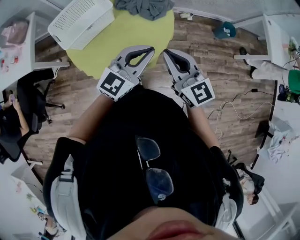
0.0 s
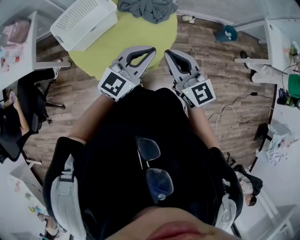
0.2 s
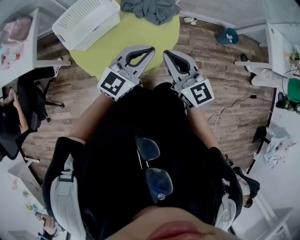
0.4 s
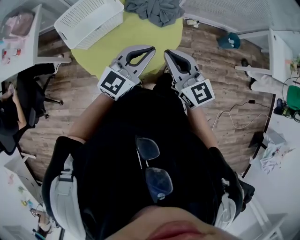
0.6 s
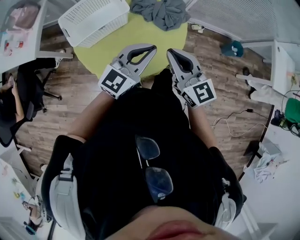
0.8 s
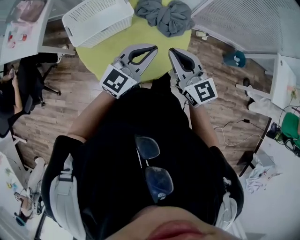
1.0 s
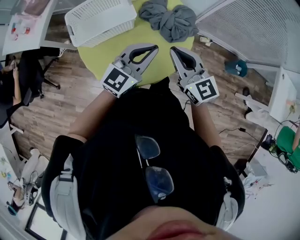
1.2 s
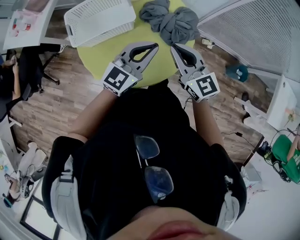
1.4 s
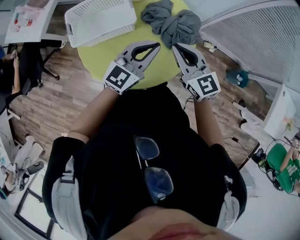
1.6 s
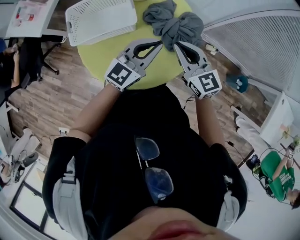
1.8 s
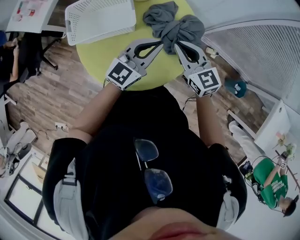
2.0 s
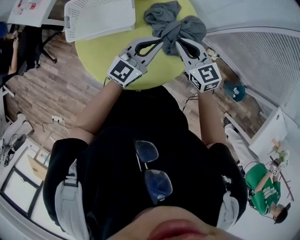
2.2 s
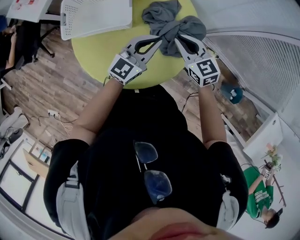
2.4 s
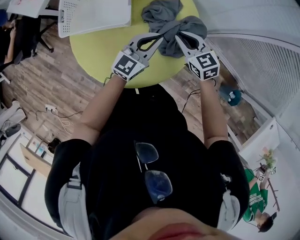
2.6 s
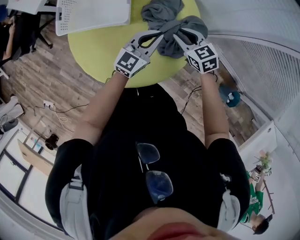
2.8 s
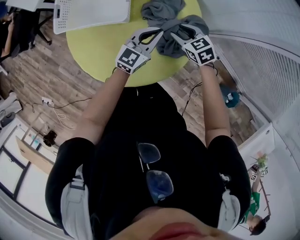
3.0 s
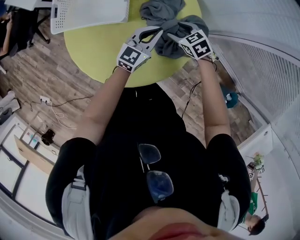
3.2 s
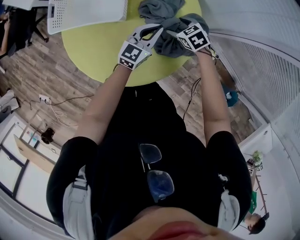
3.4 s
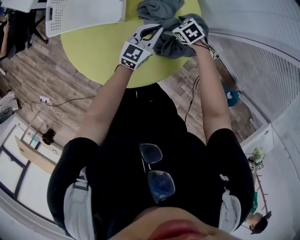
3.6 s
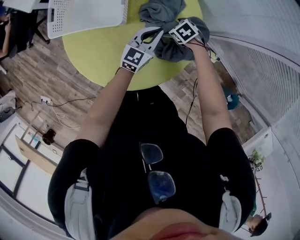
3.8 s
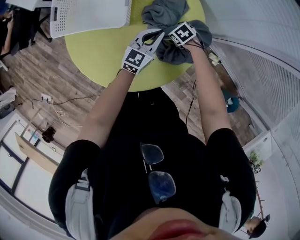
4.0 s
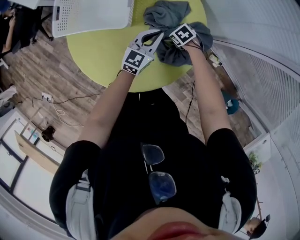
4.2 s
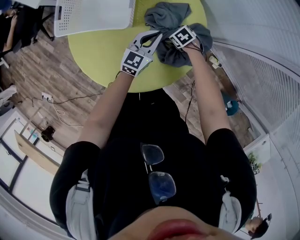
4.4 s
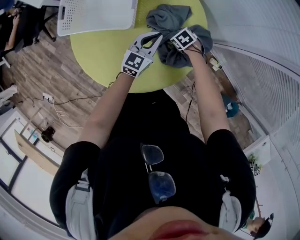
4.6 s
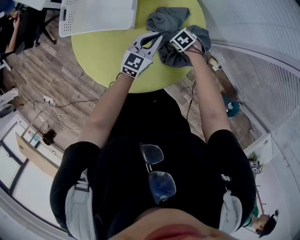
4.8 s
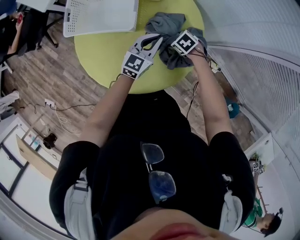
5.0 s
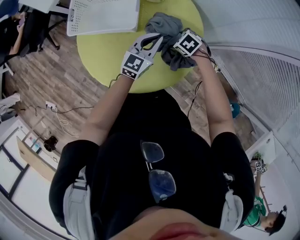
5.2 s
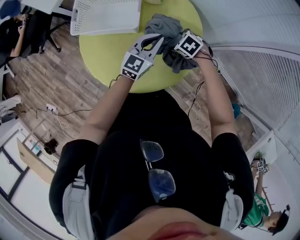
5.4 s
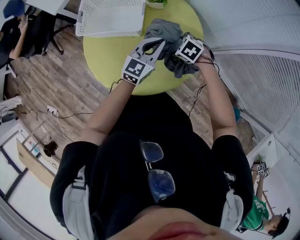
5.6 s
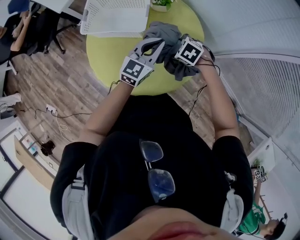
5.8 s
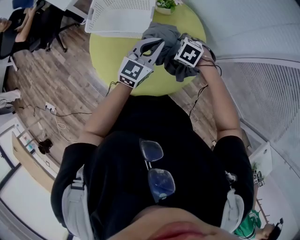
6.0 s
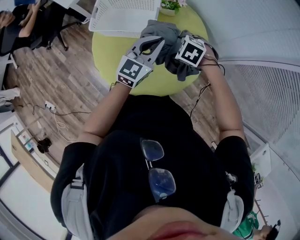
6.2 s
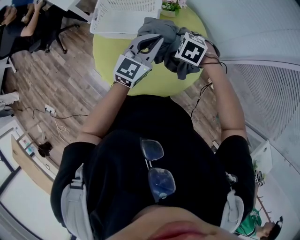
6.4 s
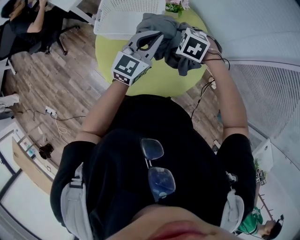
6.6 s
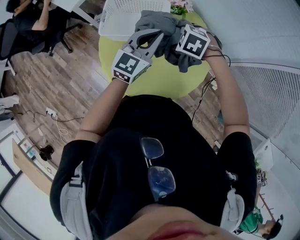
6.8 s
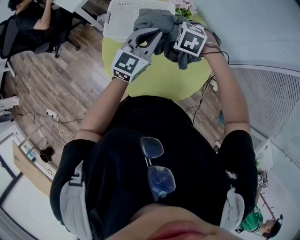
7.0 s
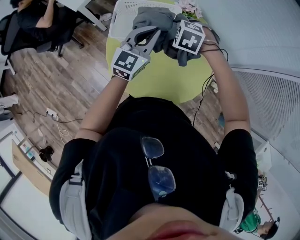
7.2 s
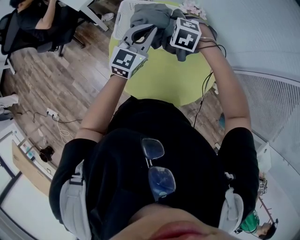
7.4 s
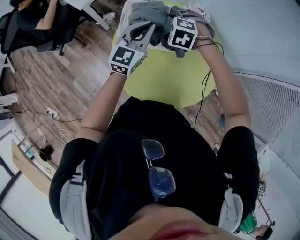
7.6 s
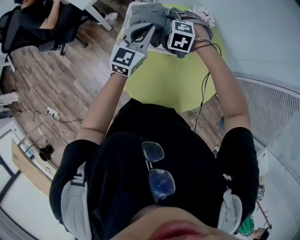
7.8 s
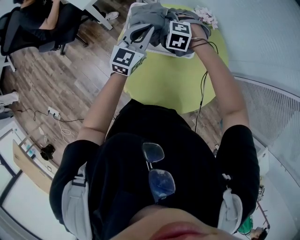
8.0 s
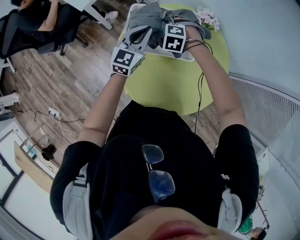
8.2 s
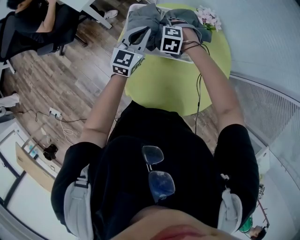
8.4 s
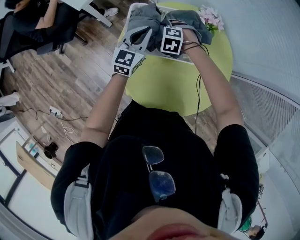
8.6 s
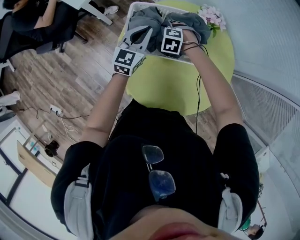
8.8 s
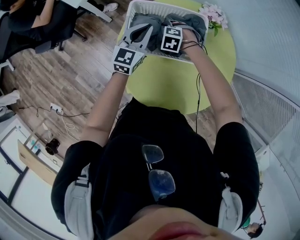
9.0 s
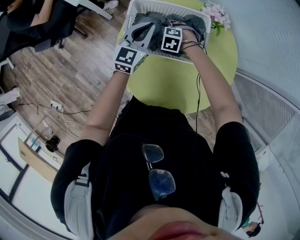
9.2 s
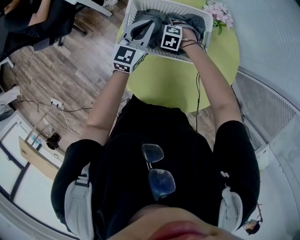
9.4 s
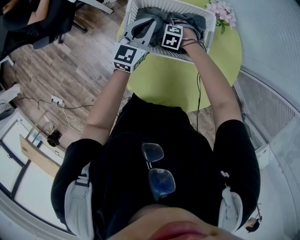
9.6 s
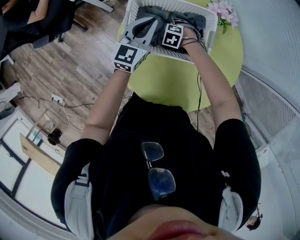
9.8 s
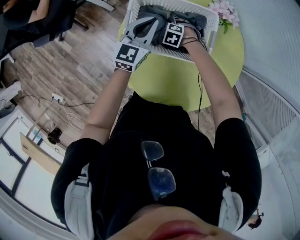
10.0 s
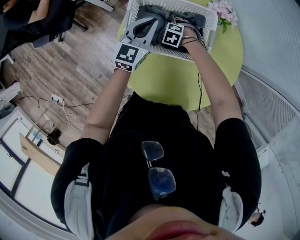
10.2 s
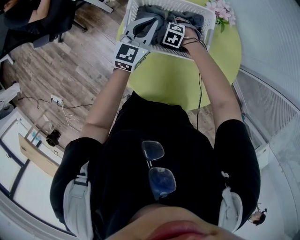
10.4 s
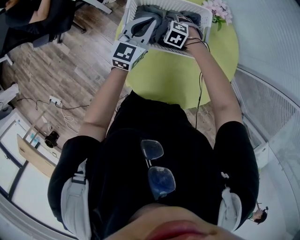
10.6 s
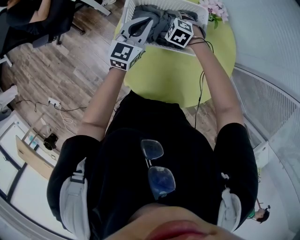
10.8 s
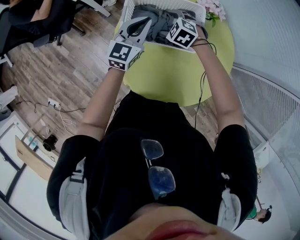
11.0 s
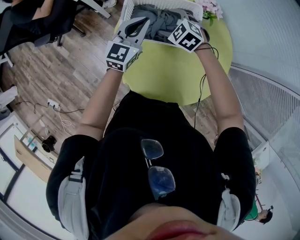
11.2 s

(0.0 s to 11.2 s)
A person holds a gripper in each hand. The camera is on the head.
0.0 s - 1.6 s: The two grippers go some 20 cm forward. The left gripper turns by roughly 20 degrees. The right gripper turns by about 20 degrees.
1.6 s - 3.2 s: Both grippers travel together downward, approximately 20 cm. The left gripper rotates roughly 20 degrees. Meanwhile the right gripper tilts its fingers some 40 degrees downward, and opens up.
3.2 s - 4.8 s: The right gripper moves downward, some 10 cm, and changes its angle by about 20 degrees.
4.8 s - 6.4 s: The two grippers go roughly 25 cm upward and to the left. The right gripper turns by approximately 30 degrees.
6.4 s - 8.0 s: The grippers both shift to the left and forward by about 25 cm. The right gripper rotates some 20 degrees.
8.0 s - 9.6 s: The right gripper moves downward, roughly 20 cm; the left gripper heads downward, covering approximately 10 cm.
9.6 s - 11.2 s: The left gripper changes place by about 10 cm, while the right gripper is displaced upward by approximately 20 cm, and rotates some 30 degrees.

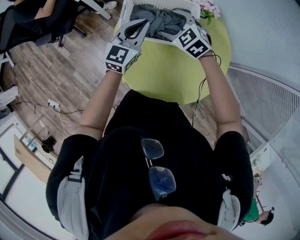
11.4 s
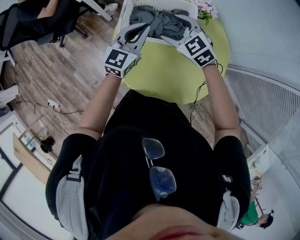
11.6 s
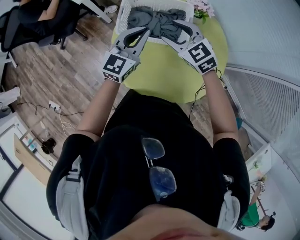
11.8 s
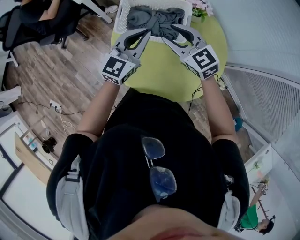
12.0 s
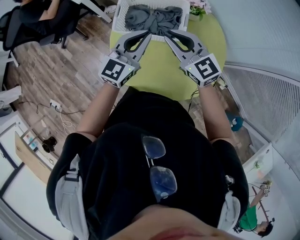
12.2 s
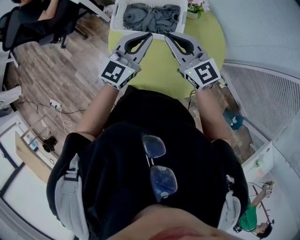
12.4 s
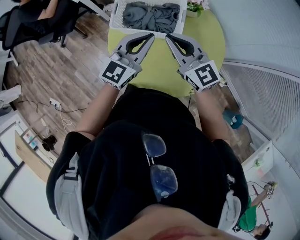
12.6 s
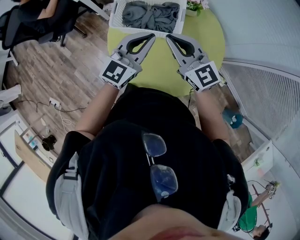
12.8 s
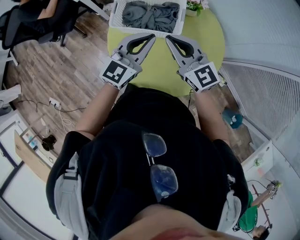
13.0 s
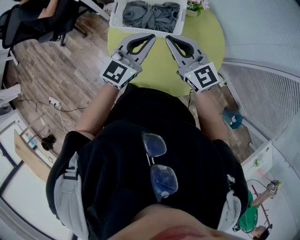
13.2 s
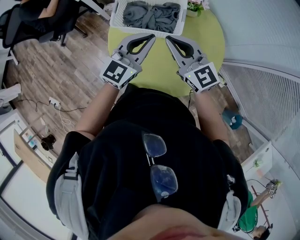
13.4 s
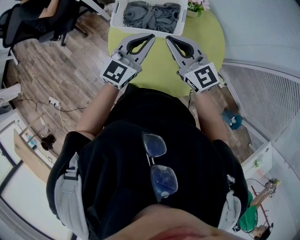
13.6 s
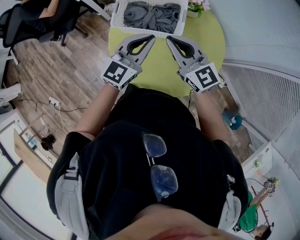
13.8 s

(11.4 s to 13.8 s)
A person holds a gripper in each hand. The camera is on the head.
11.4 s - 12.6 s: The right gripper heads backward, upward and to the right, covering roughly 20 cm, angles its fingers upward, by about 40 degrees, and closes. Meanwhile the left gripper goes some 15 cm backward, to the right and upward.
12.6 s - 13.8 s: The two grippers keep their place.

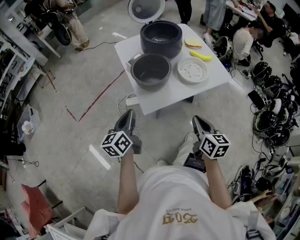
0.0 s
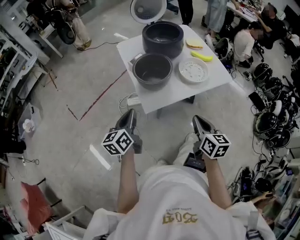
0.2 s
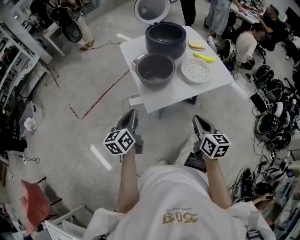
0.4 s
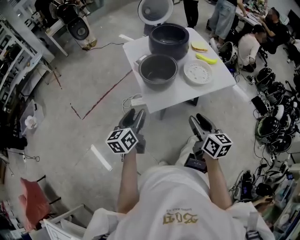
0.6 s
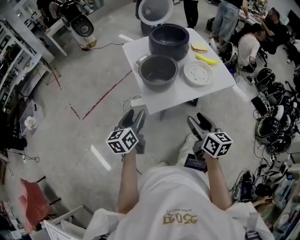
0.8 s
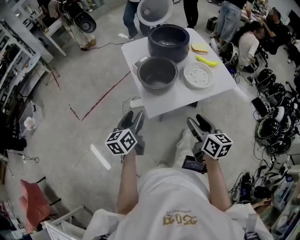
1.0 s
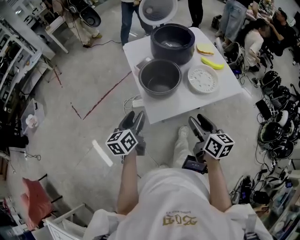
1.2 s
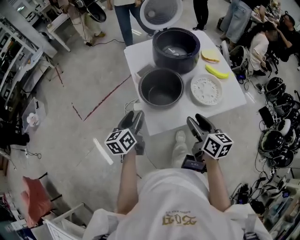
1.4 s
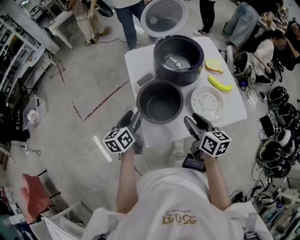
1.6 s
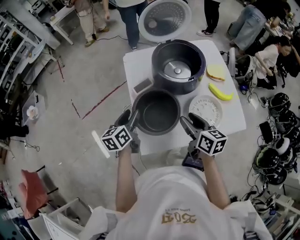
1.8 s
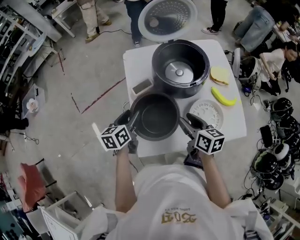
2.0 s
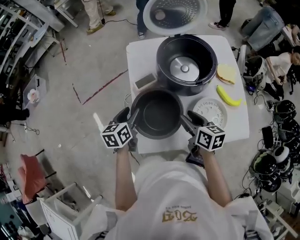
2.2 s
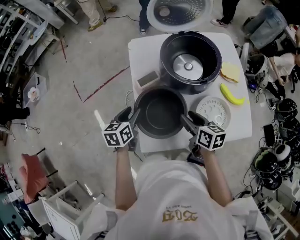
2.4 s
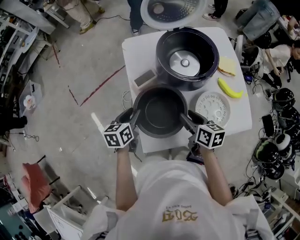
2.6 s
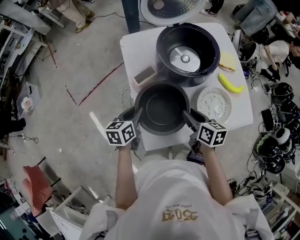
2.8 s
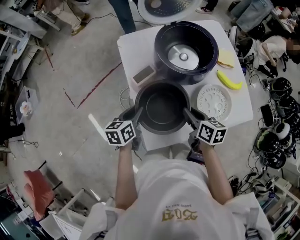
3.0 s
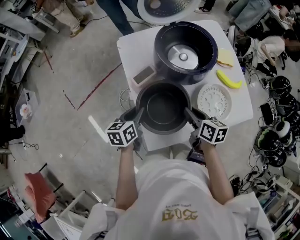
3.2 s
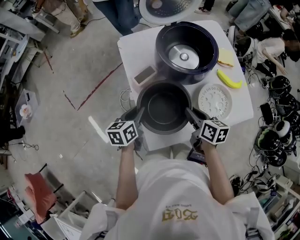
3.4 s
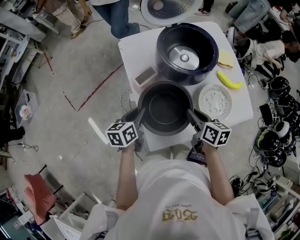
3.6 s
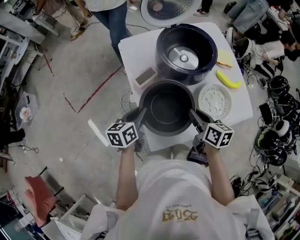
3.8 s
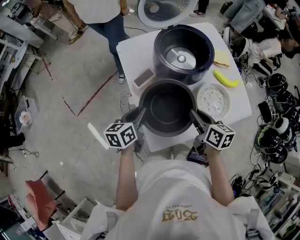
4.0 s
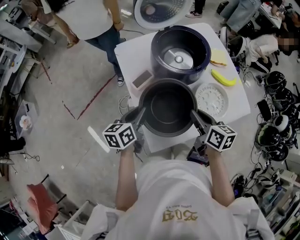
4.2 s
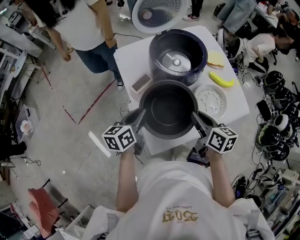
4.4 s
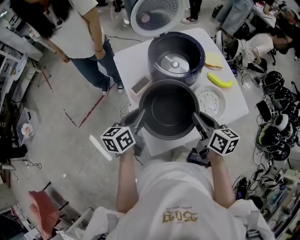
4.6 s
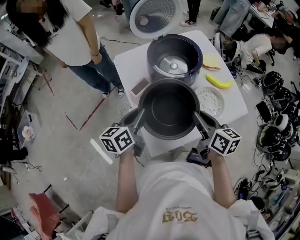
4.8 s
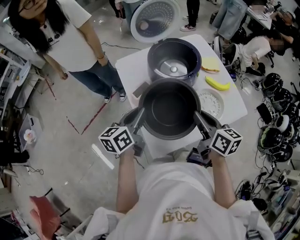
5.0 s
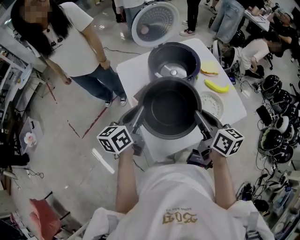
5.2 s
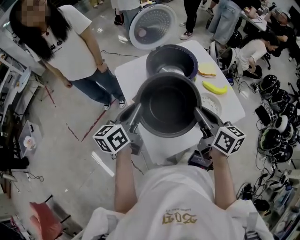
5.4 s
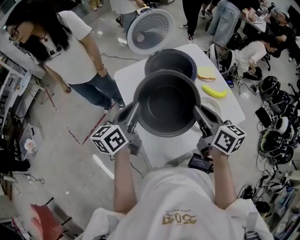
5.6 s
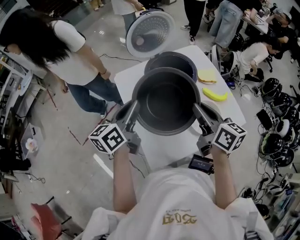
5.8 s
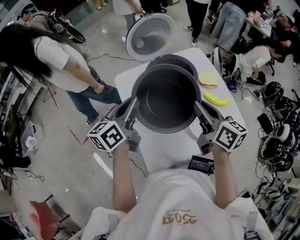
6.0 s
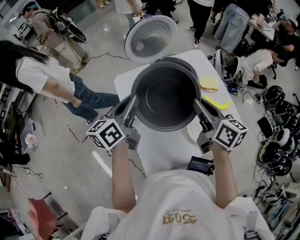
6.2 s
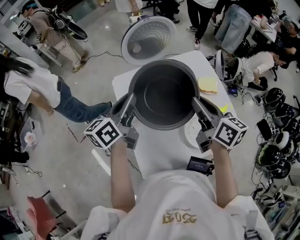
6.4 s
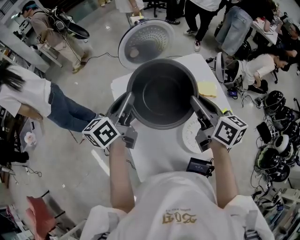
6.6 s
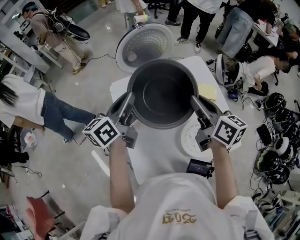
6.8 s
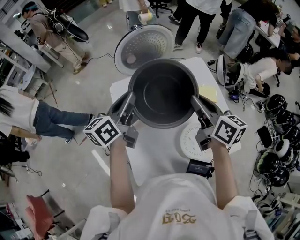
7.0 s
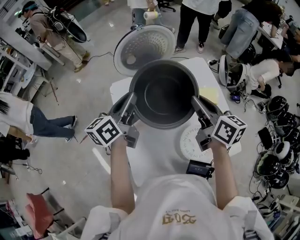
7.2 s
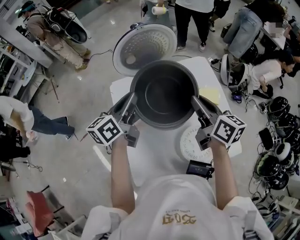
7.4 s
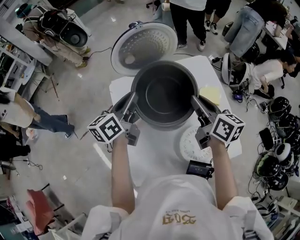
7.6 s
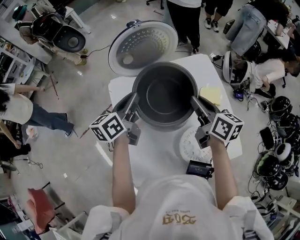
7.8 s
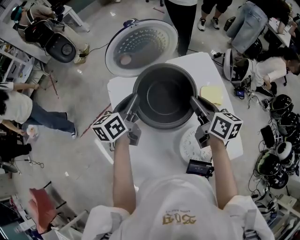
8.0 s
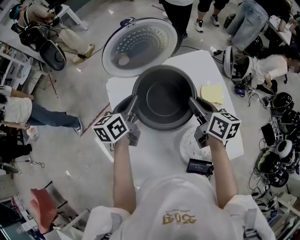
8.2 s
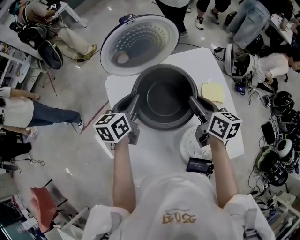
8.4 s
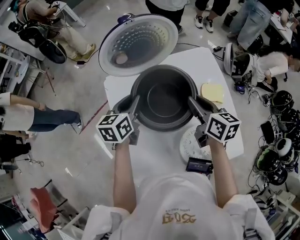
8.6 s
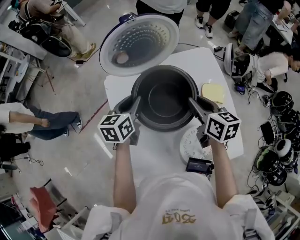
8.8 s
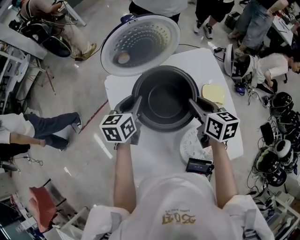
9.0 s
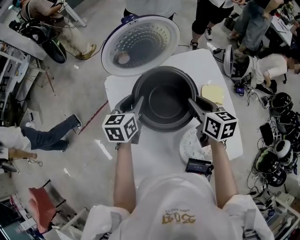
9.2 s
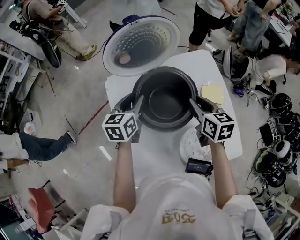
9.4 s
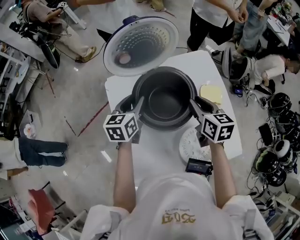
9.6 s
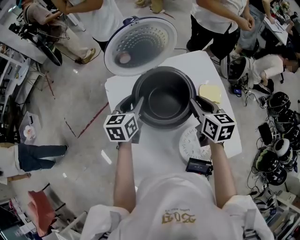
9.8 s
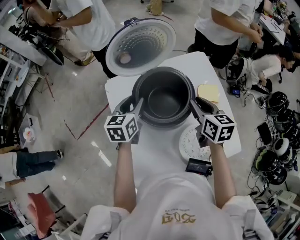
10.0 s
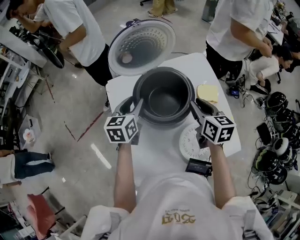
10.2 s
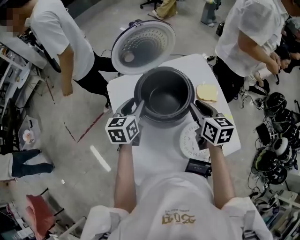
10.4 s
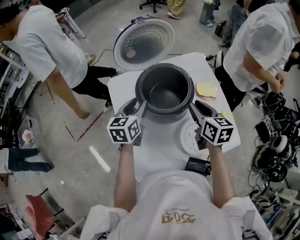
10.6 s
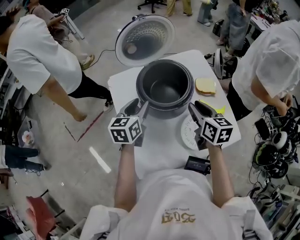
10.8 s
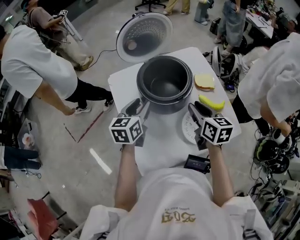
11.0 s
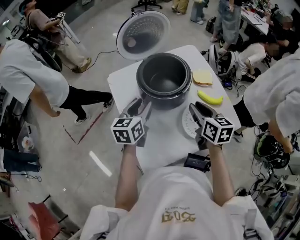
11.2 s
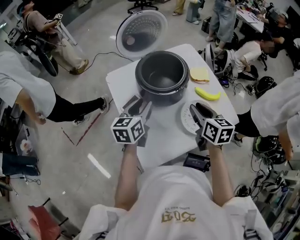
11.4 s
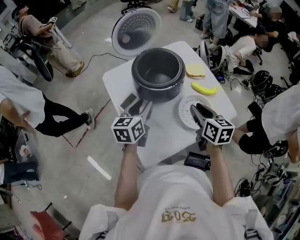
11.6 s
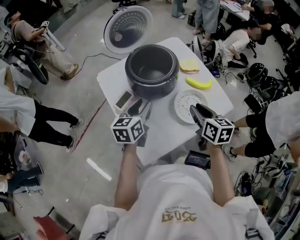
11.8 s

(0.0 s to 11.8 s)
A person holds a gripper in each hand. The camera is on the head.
0.0 s - 1.4 s: The grippers both shift forward by roughly 15 cm. The left gripper opens up. The right gripper opens up.
1.4 s - 3.0 s: Both grippers travel together forward and downward, about 20 cm. The right gripper closes up. Meanwhile the left gripper closes up.
3.0 s - 4.4 s: The grippers both shift upward by some 5 cm.
4.4 s - 6.0 s: Both grippers travel together upward and forward, roughly 15 cm.
6.0 s - 7.4 s: The grippers both shift forward by roughly 15 cm.
7.4 s - 8.8 s: Both grippers move downward, some 10 cm. The left gripper rotates approximately 30 degrees.
8.8 s - 10.4 s: The right gripper heads backward, covering roughly 5 cm.
10.4 s - 11.8 s: Both grippers move backward, about 20 cm.
